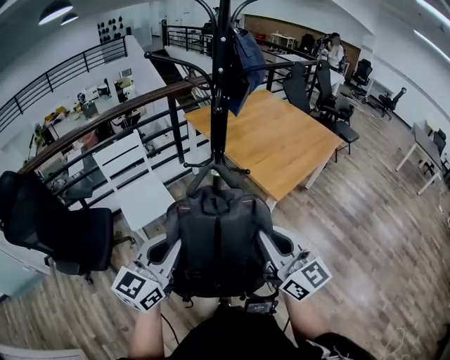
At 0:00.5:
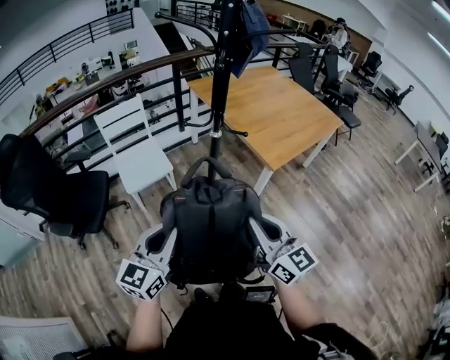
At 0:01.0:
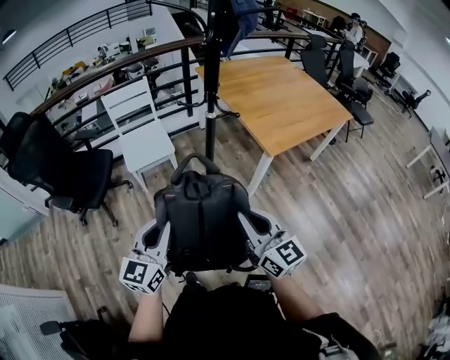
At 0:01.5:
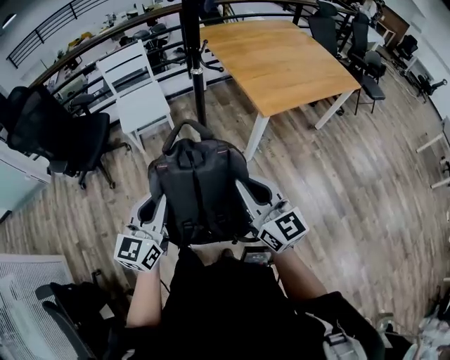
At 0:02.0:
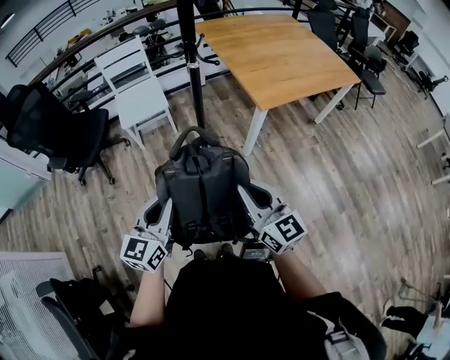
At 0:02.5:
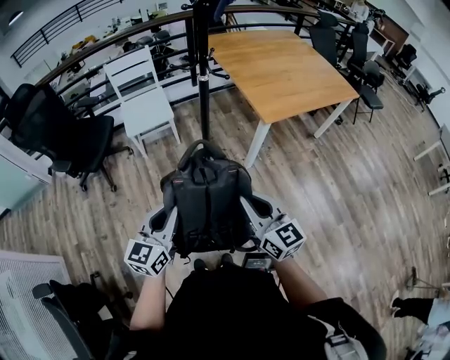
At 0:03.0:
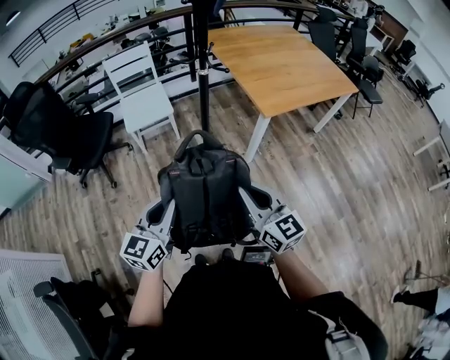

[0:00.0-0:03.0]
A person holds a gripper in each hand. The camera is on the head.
0:00.0 to 0:01.5: The two grippers go roughly 20 cm backward, downward and to the right. The left gripper changes its angle by some 20 degrees.
0:01.5 to 0:03.0: There are only small adjustments of the grippers.

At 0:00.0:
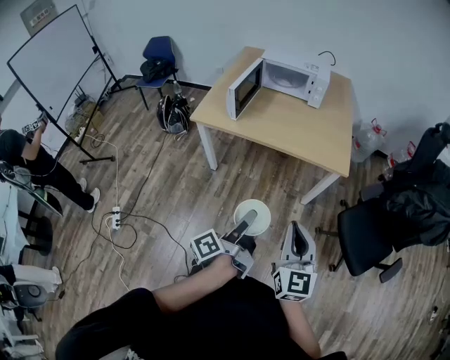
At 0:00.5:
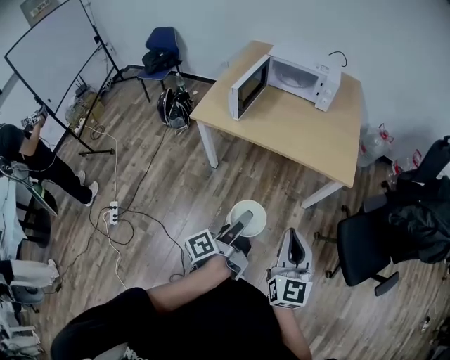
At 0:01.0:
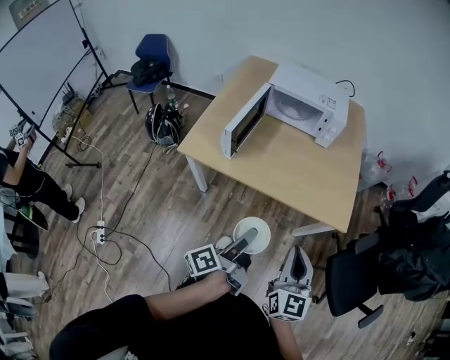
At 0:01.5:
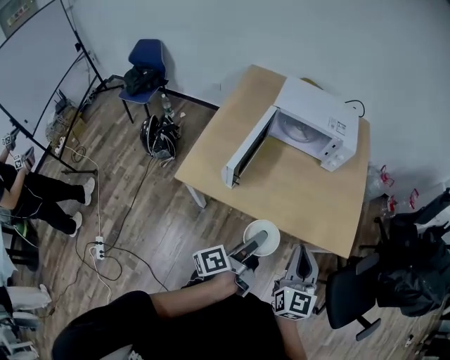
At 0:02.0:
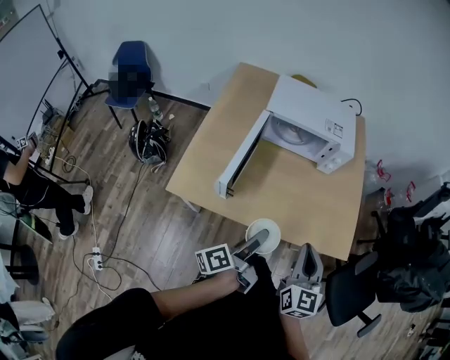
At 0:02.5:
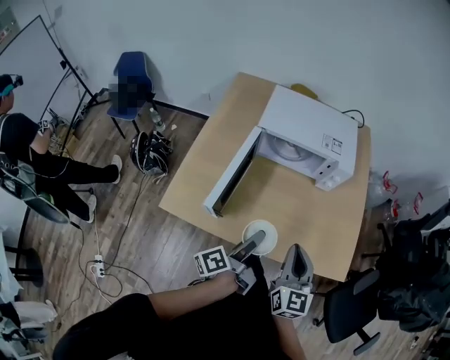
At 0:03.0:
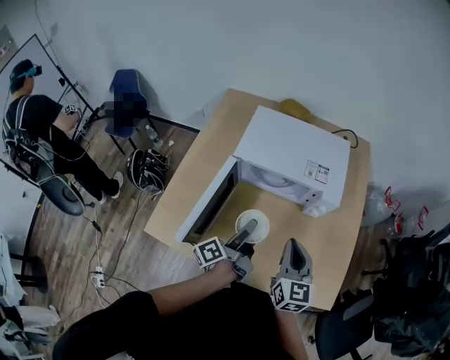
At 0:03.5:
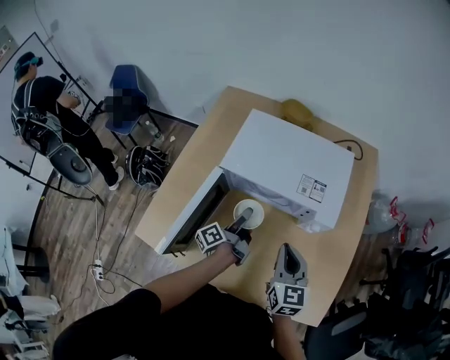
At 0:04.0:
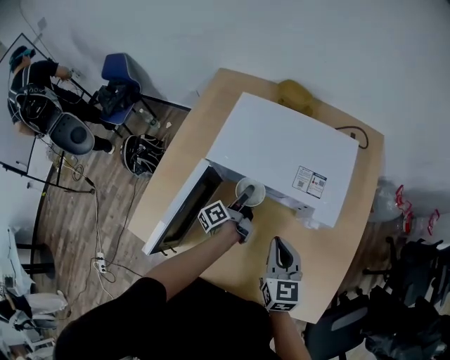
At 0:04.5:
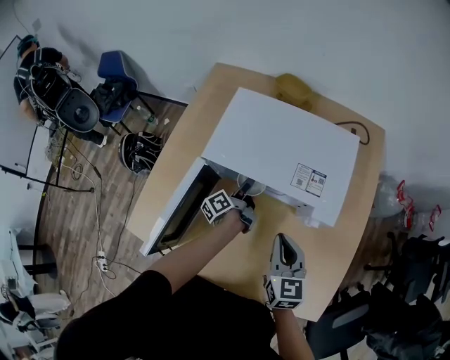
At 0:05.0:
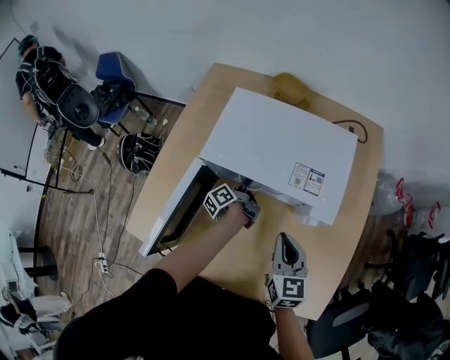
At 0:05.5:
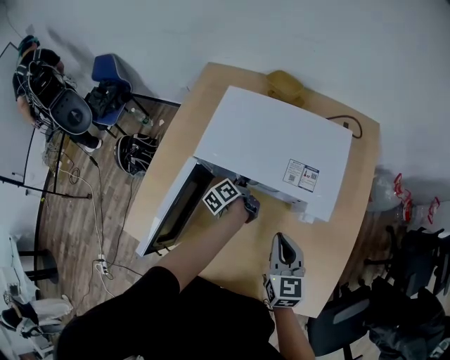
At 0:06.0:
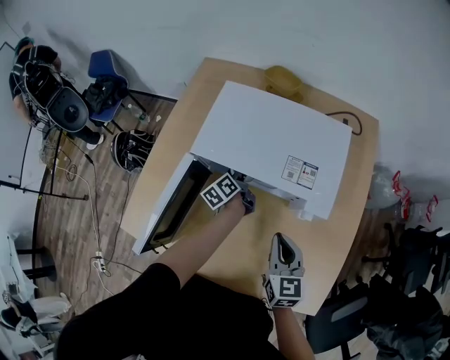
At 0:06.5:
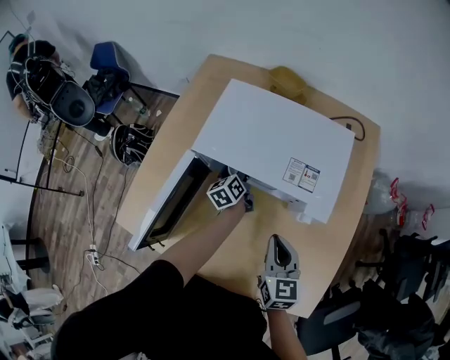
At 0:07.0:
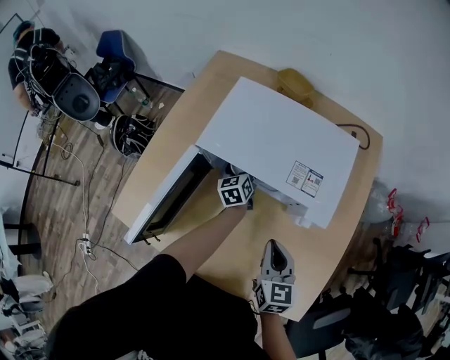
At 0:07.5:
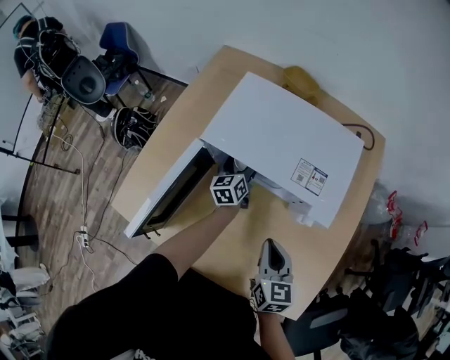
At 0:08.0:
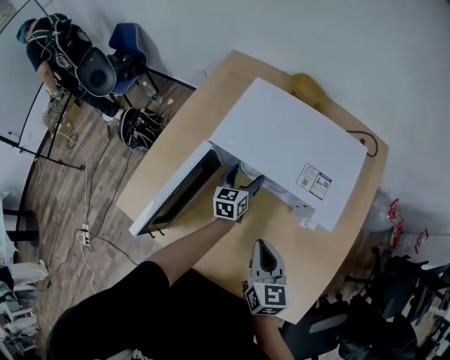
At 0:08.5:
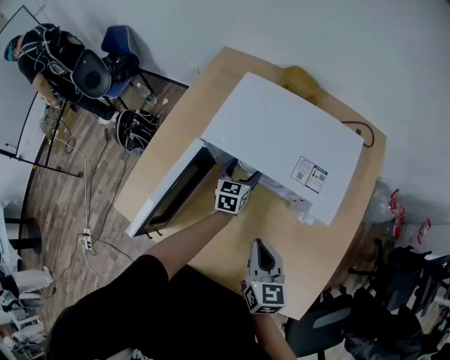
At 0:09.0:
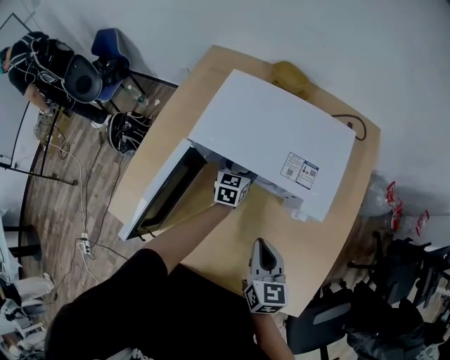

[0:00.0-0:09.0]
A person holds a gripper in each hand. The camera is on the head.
0:00.0 to 0:02.0: The two grippers travel together, forward, roughly 40 cm.
0:02.0 to 0:04.5: The left gripper goes approximately 50 cm forward and downward, and rotates roughly 20 degrees, while the right gripper moves forward, approximately 35 cm, and swivels some 20 degrees.
0:04.5 to 0:07.0: The left gripper shifts some 5 cm forward, rolls clockwise, seen from behind, by about 50 degrees, and opens up.
0:07.0 to 0:09.0: The left gripper changes its angle by about 30 degrees.

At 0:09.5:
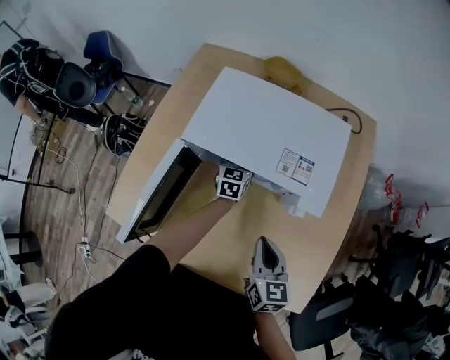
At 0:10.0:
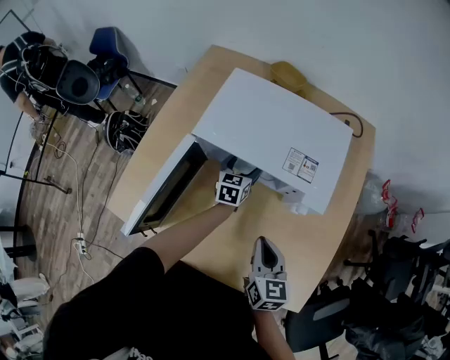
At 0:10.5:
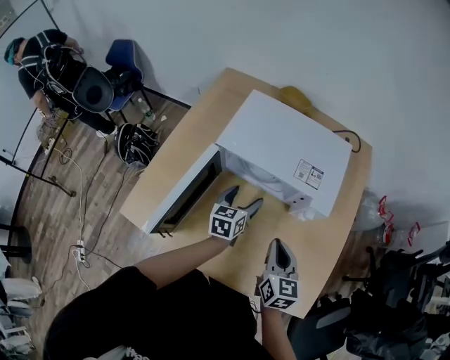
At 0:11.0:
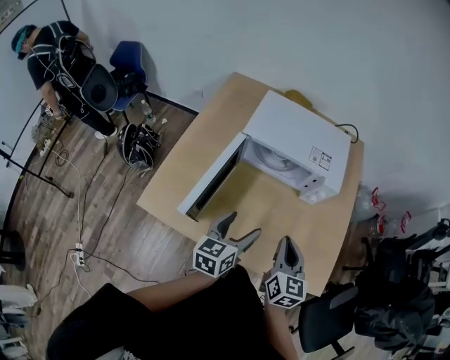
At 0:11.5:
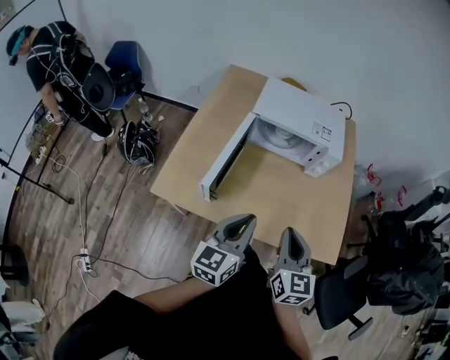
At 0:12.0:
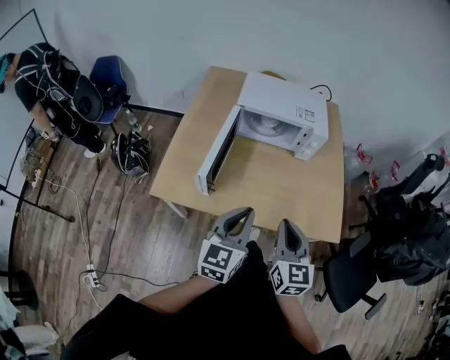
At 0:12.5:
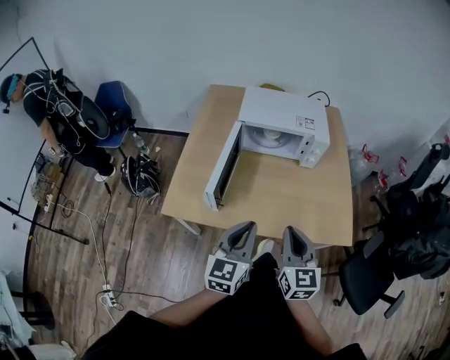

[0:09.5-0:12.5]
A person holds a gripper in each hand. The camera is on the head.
0:09.5 to 0:11.0: The left gripper moves backward and upward, approximately 40 cm, and rotates about 20 degrees. Meanwhile the right gripper is displaced backward, upward and to the left by roughly 15 cm.
0:11.0 to 0:12.5: The right gripper moves backward, some 15 cm. The left gripper is displaced backward and upward by approximately 20 cm, swivels about 20 degrees, and closes up.

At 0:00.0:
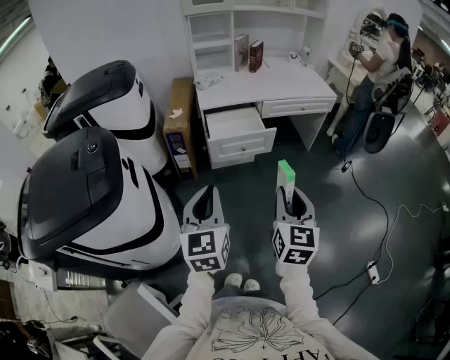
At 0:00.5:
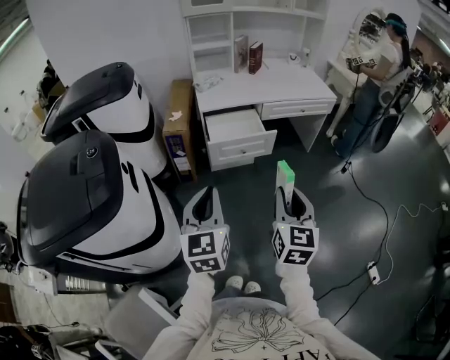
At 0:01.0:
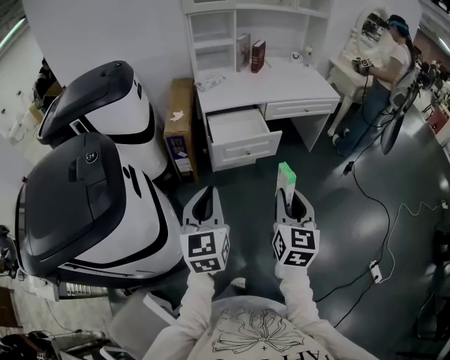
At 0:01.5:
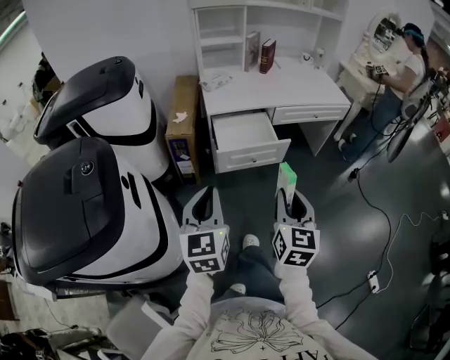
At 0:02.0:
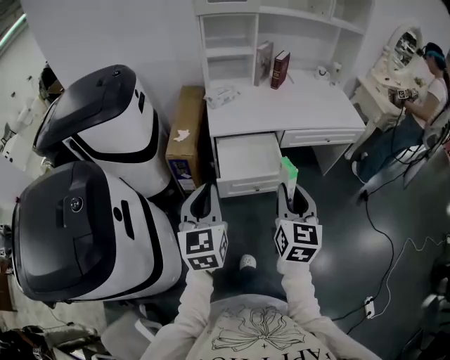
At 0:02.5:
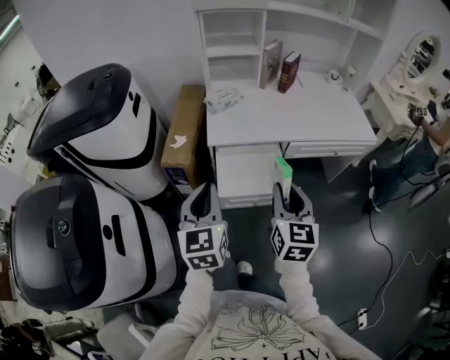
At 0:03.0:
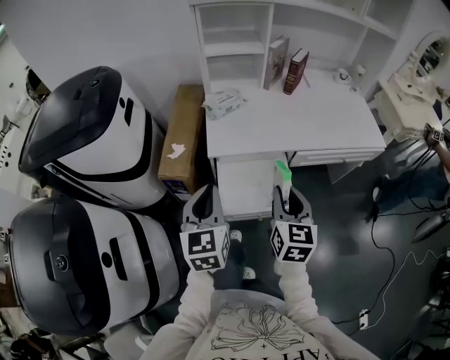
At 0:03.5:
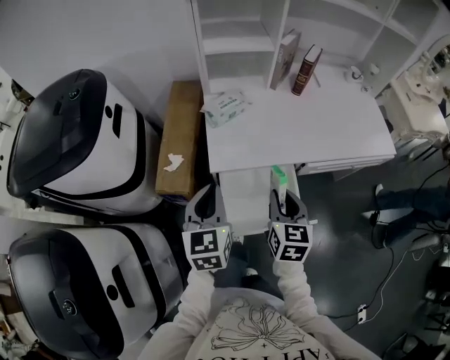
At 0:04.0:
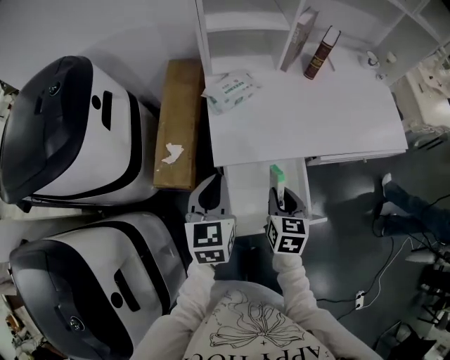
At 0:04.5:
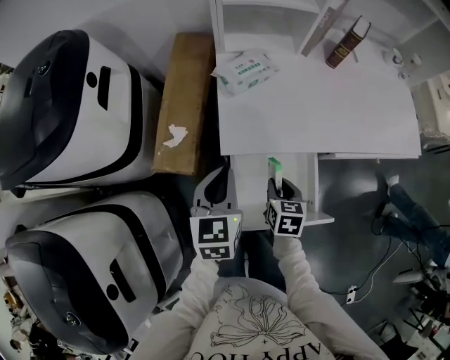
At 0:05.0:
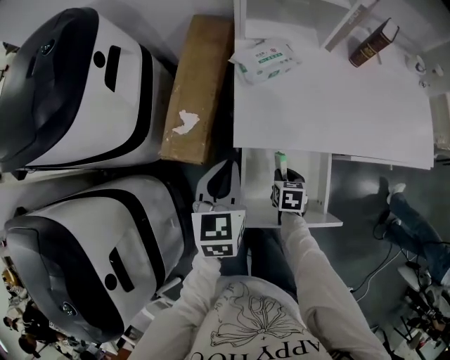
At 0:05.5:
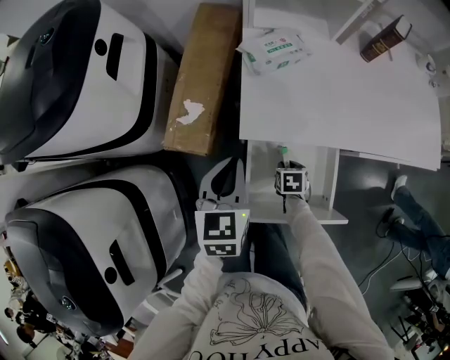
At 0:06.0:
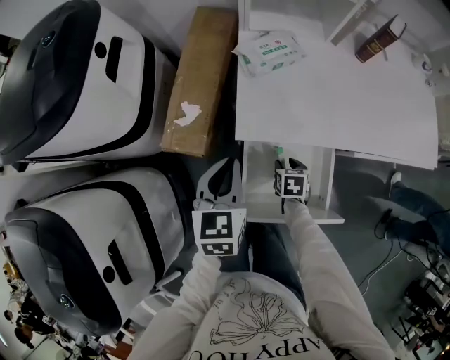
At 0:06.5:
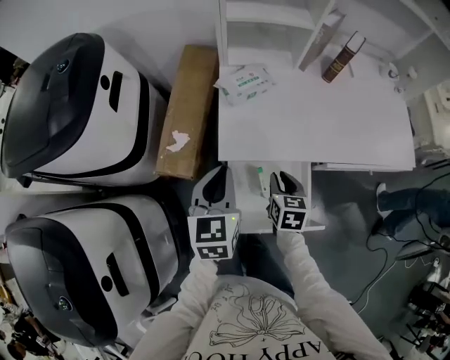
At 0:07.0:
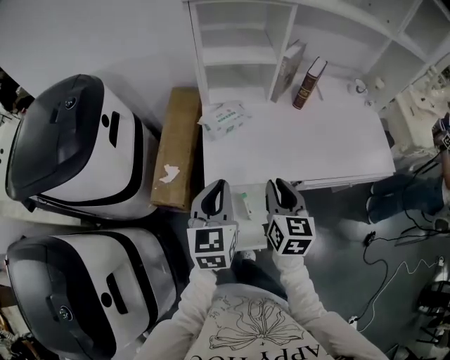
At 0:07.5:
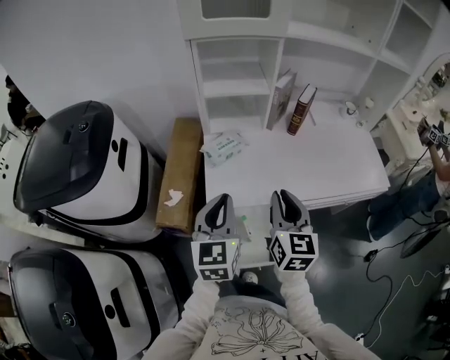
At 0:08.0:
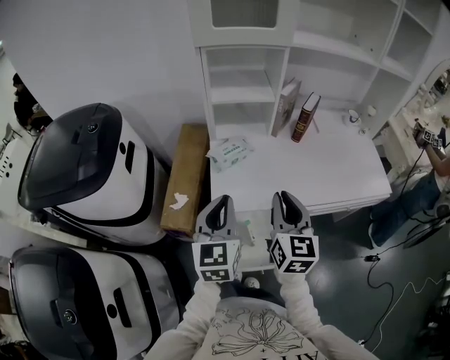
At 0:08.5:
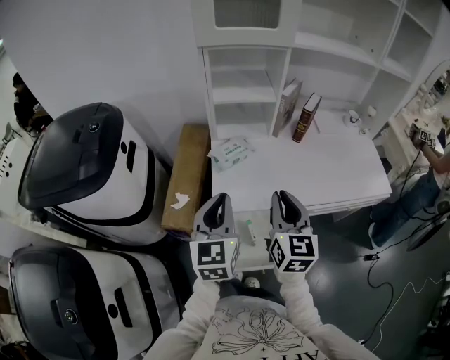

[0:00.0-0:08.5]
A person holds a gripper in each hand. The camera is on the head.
0:00.0 to 0:02.0: Both grippers travel together forward, roughly 30 cm.
0:02.0 to 0:04.0: The left gripper is displaced forward by about 35 cm. Meanwhile the right gripper shifts roughly 40 cm forward and downward, and changes its angle by roughly 30 degrees.
0:04.0 to 0:06.5: The left gripper goes downward and returns, approximately 5 cm each way. Meanwhile the right gripper shifts about 5 cm forward, travels downward and back again, roughly 25 cm each way, and opens and closes again.
0:06.5 to 0:08.5: The right gripper shifts some 30 cm upward, and points its fingers approximately 30 degrees further upward. The left gripper is displaced upward by some 15 cm.

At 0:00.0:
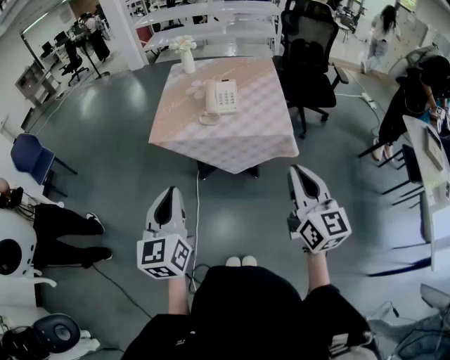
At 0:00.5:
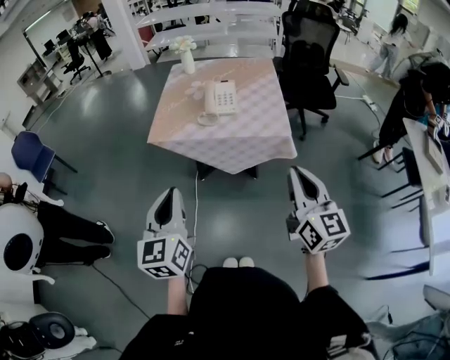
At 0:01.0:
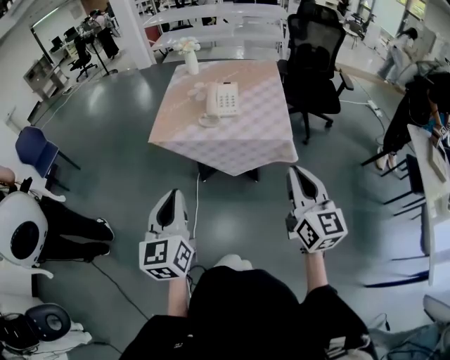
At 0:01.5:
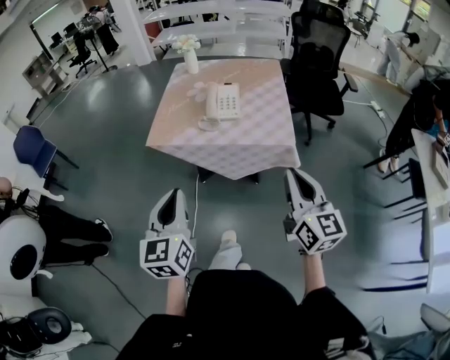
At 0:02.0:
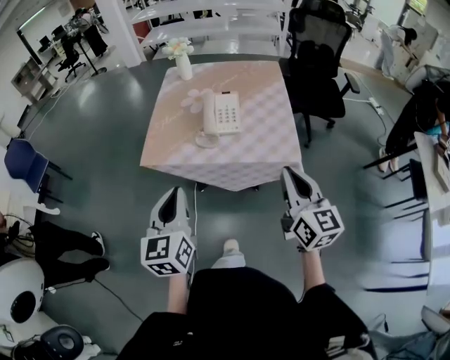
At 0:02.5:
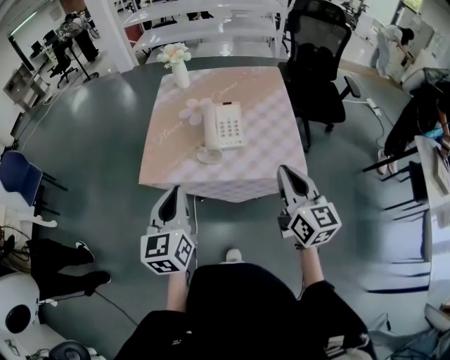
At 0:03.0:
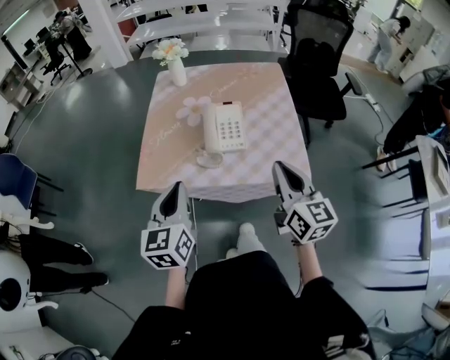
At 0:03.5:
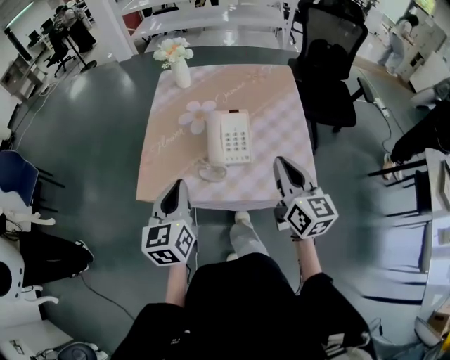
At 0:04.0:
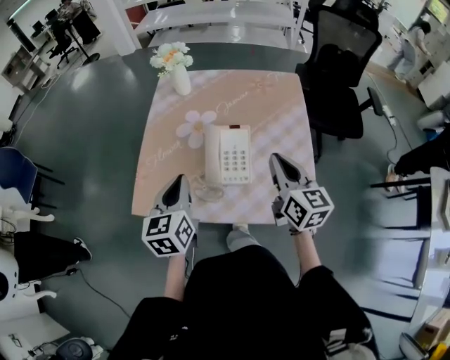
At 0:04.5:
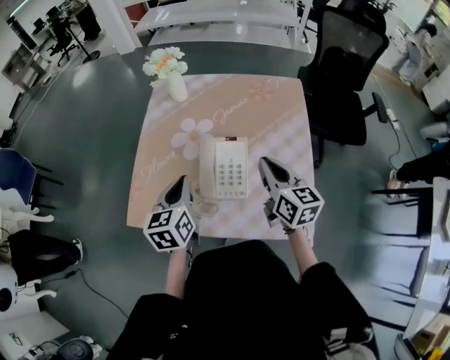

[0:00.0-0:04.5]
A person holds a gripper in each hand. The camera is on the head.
0:00.0 to 0:02.0: The grippers both shift forward by about 15 cm.
0:02.0 to 0:04.5: Both grippers travel together forward, roughly 35 cm.
